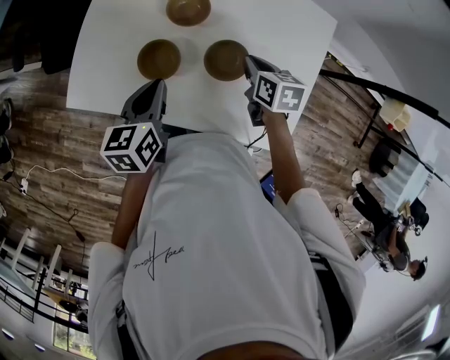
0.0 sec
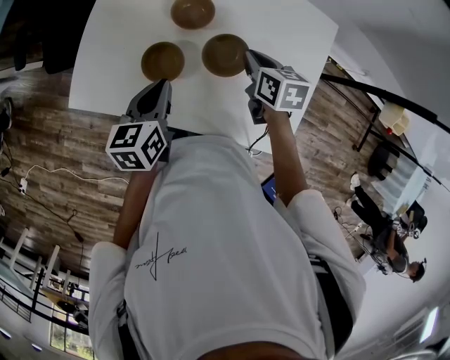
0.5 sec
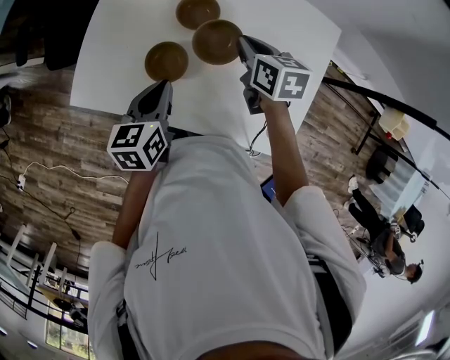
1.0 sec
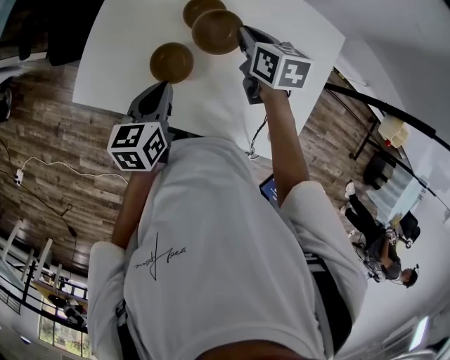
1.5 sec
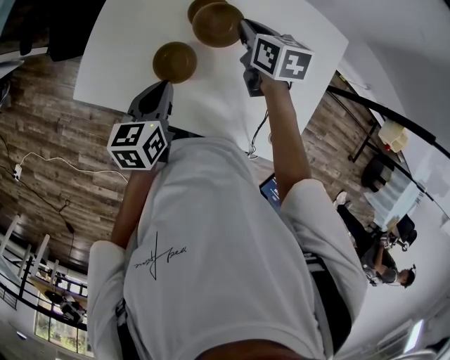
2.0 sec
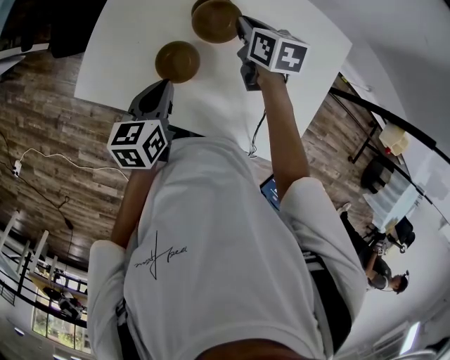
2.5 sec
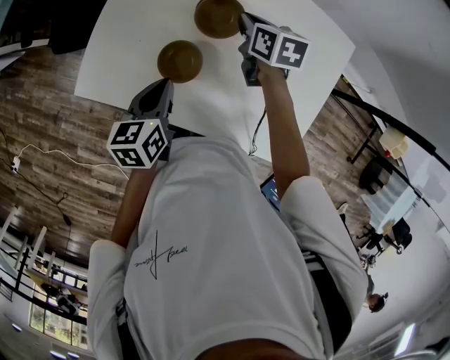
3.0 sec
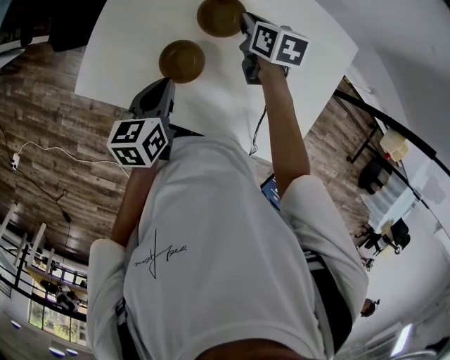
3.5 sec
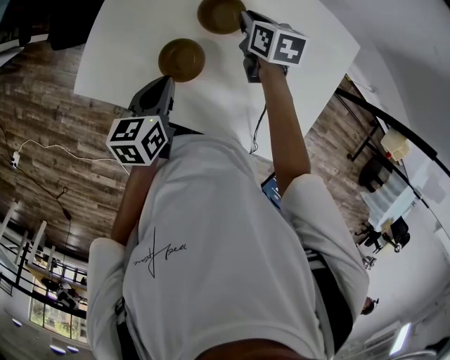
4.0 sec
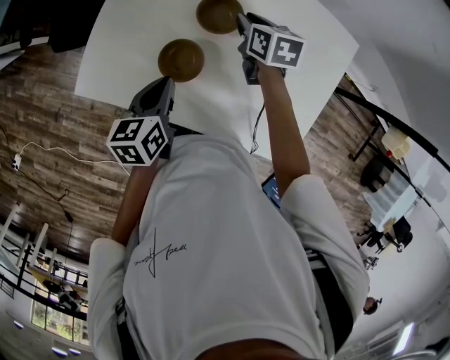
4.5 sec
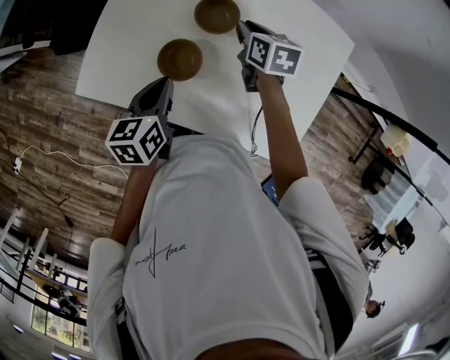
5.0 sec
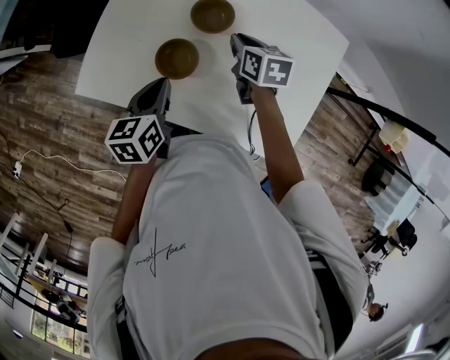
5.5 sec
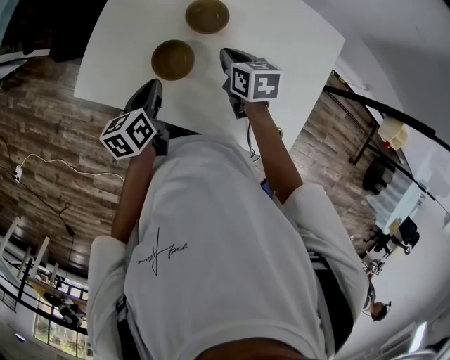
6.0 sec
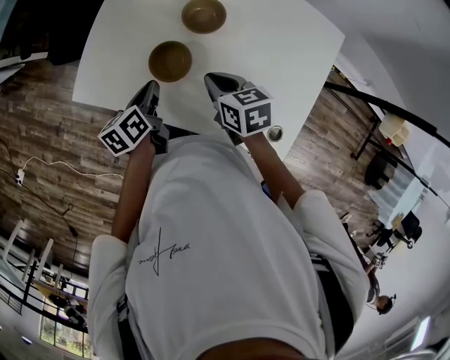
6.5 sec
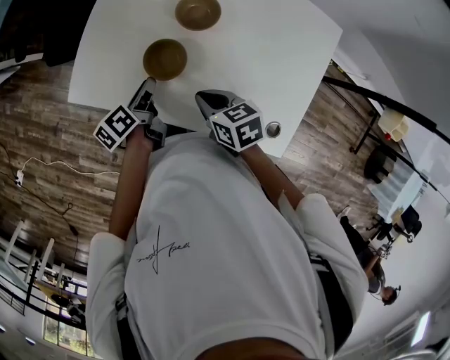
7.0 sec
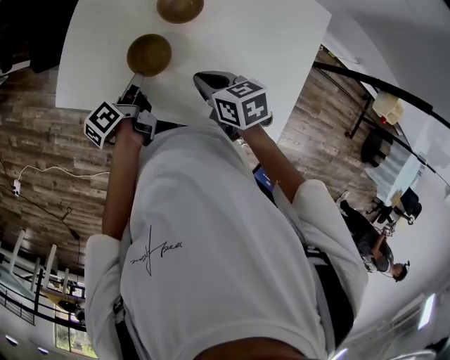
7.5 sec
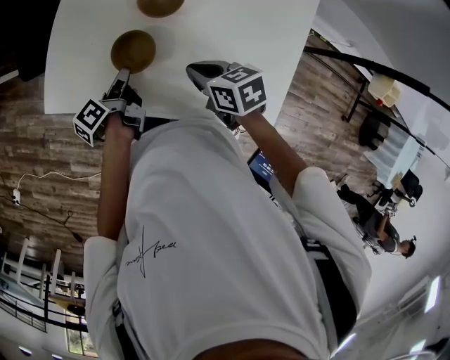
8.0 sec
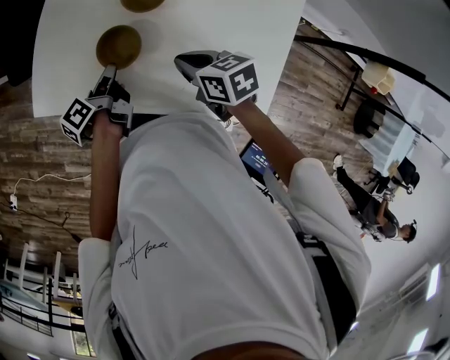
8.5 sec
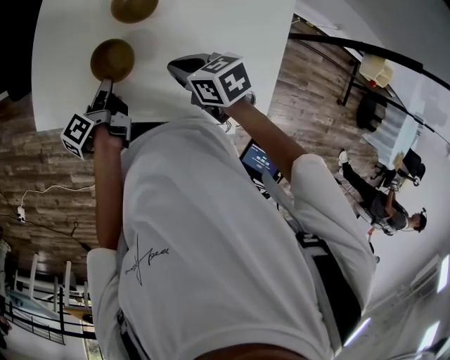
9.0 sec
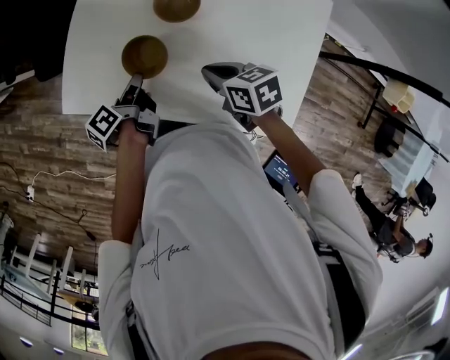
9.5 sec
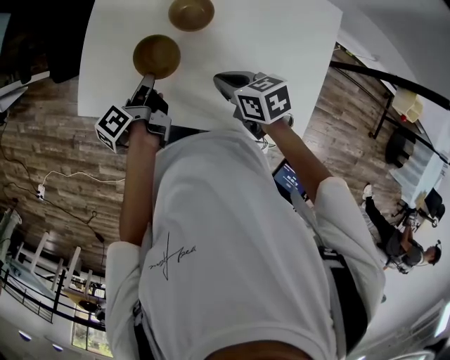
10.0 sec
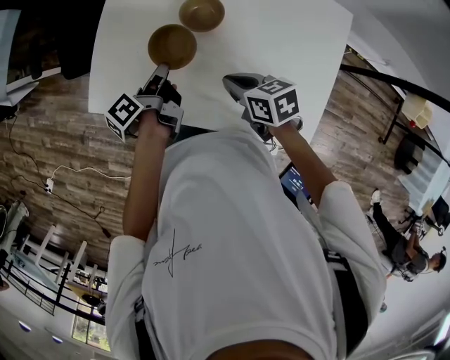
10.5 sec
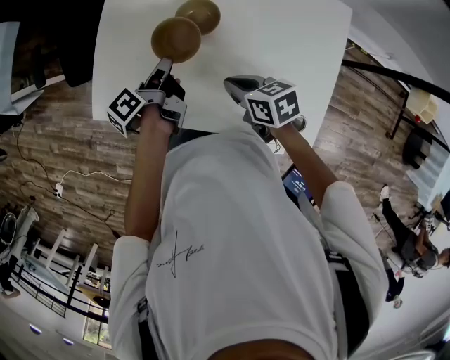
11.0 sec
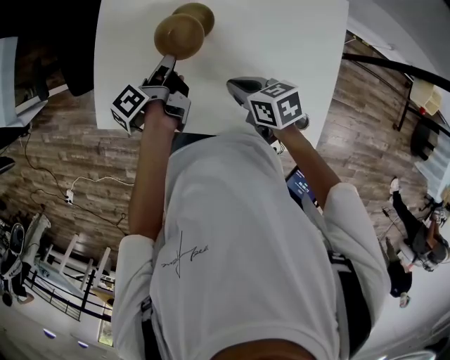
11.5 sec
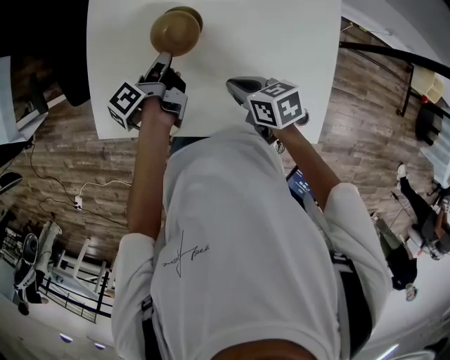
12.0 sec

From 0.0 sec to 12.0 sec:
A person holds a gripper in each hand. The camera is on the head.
From 0.0 sec to 2.0 sec: The right gripper is displaced forward, to the left and upward by about 15 cm.
From 2.0 sec to 4.0 sec: The right gripper goes approximately 5 cm downward.
From 4.0 sec to 6.0 sec: The right gripper heads backward, covering roughly 10 cm.
From 6.0 sec to 8.0 sec: The left gripper heads downward, covering some 5 cm, and rotates around the line of its fingers by roughly 40 degrees, counterclockwise from behind, while the right gripper moves backward, approximately 10 cm.
From 8.0 sec to 10.0 sec: There are only small adjustments of the grippers.
From 10.0 sec to 12.0 sec: The left gripper shifts some 10 cm to the right and forward.

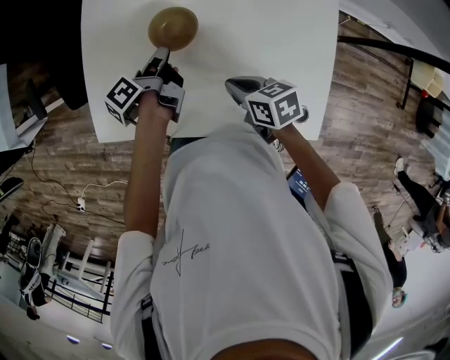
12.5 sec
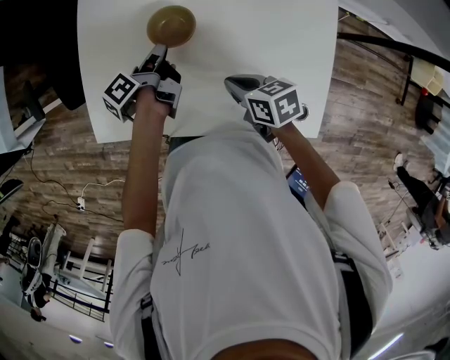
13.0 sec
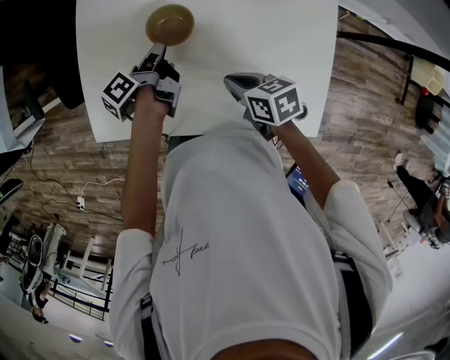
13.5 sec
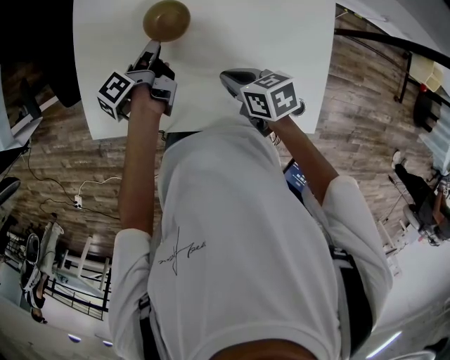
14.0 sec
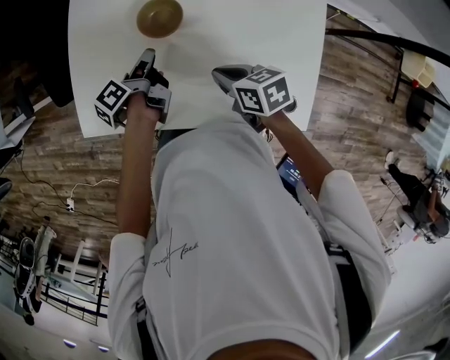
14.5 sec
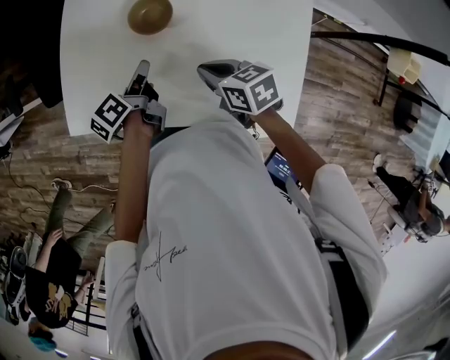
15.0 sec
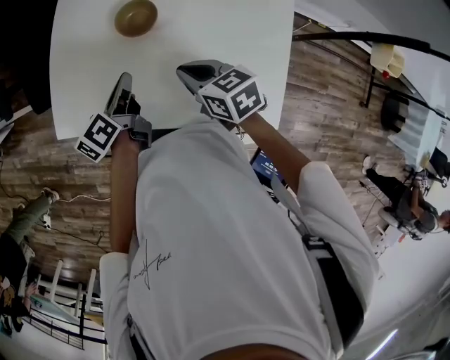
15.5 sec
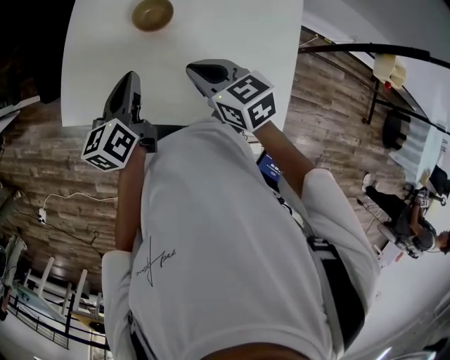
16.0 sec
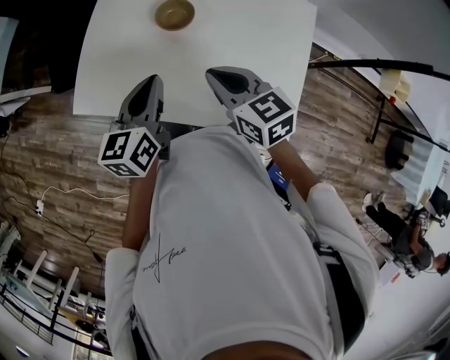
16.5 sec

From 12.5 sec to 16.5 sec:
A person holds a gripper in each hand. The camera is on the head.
From 12.5 sec to 14.5 sec: The grippers make only small movements.
From 14.5 sec to 16.5 sec: The right gripper heads upward, covering roughly 15 cm, and swivels approximately 30 degrees; the left gripper travels upward and backward by about 20 cm, and rotates around the line of its fingers by about 60 degrees, clockwise from behind.

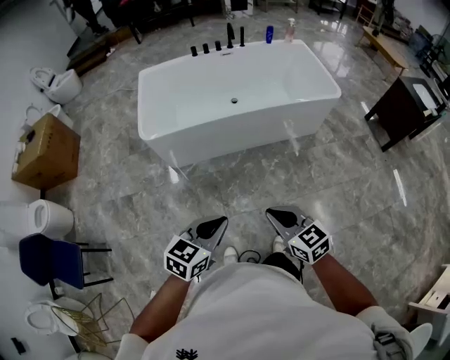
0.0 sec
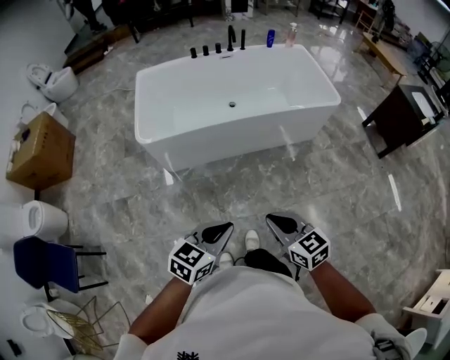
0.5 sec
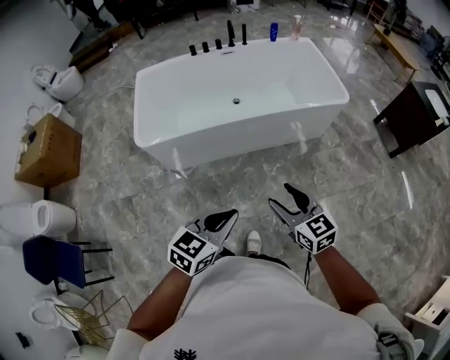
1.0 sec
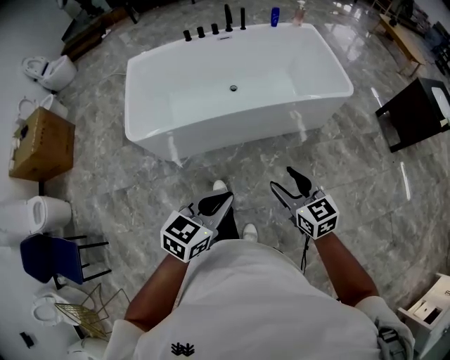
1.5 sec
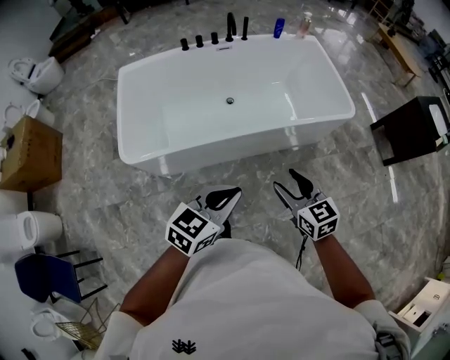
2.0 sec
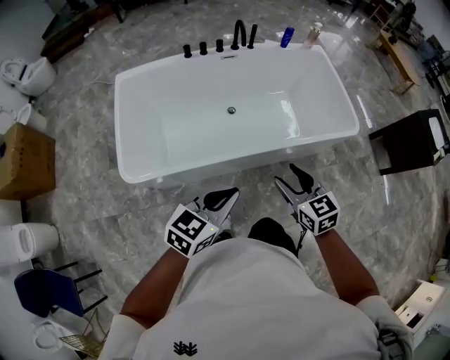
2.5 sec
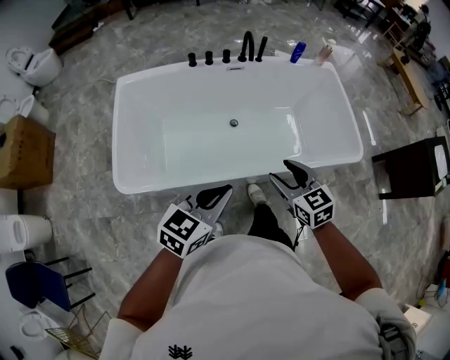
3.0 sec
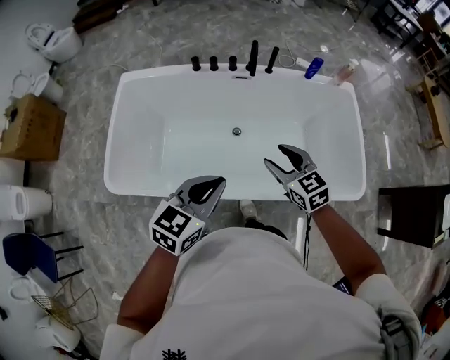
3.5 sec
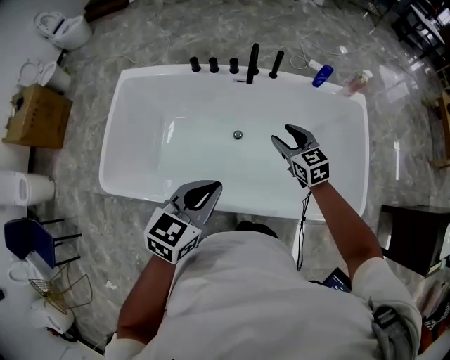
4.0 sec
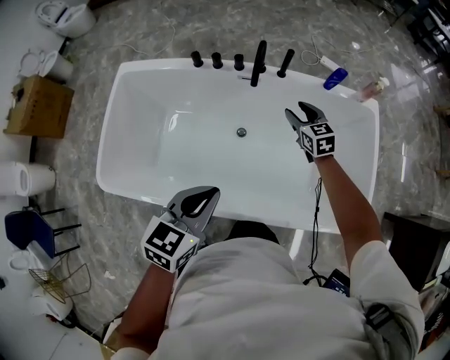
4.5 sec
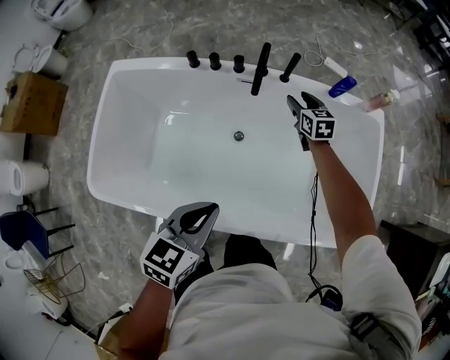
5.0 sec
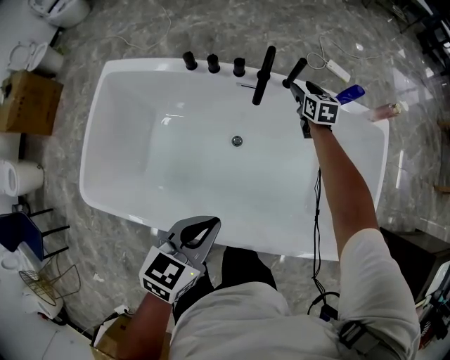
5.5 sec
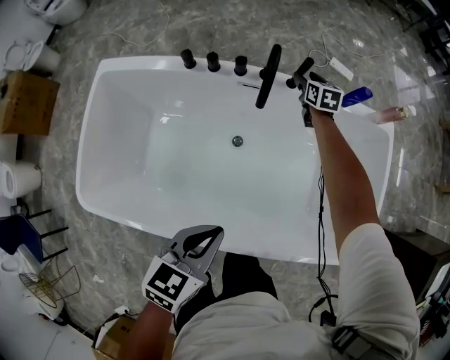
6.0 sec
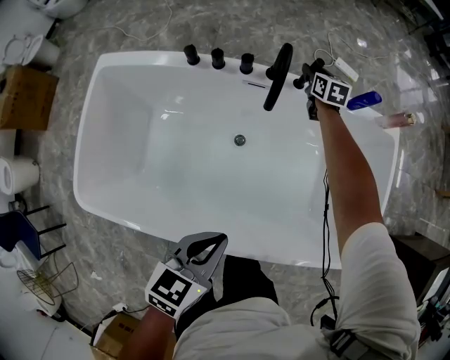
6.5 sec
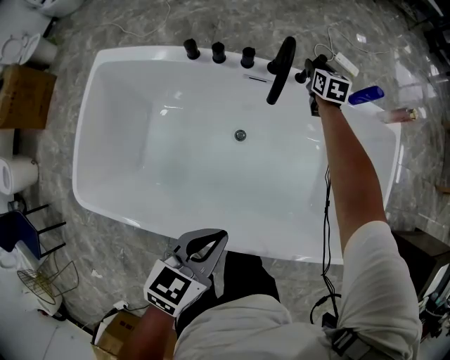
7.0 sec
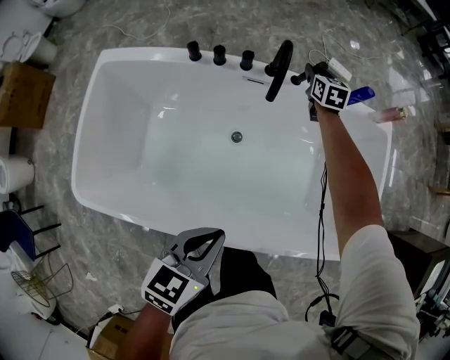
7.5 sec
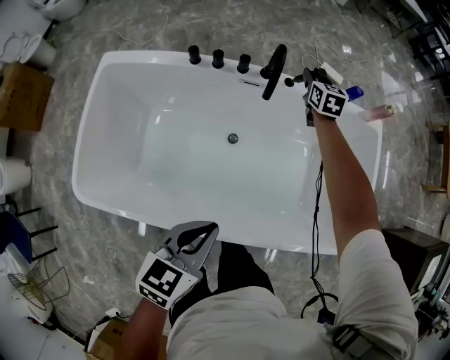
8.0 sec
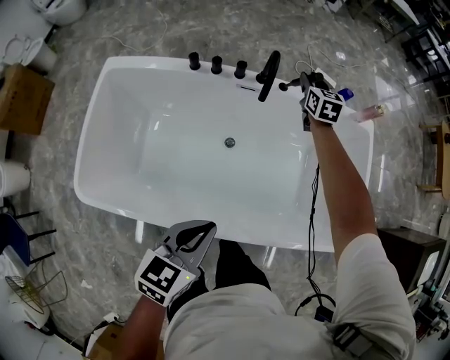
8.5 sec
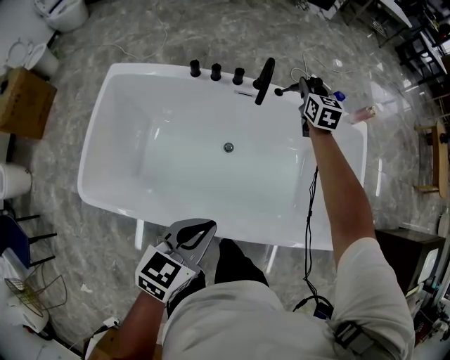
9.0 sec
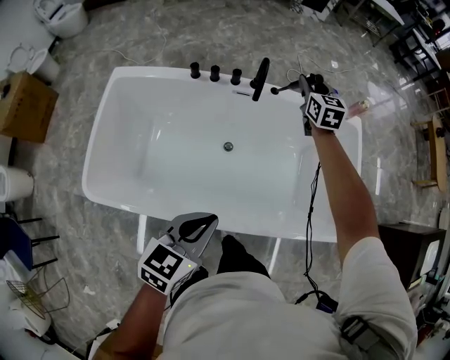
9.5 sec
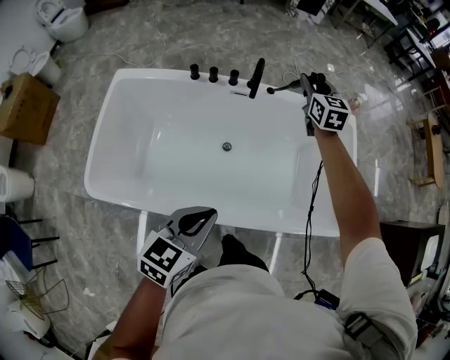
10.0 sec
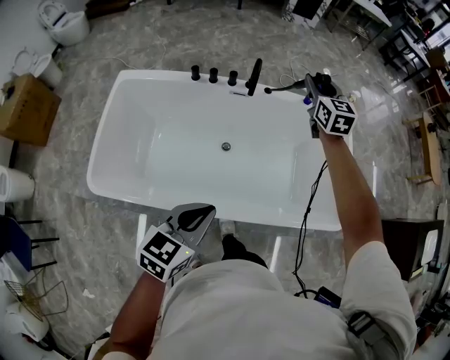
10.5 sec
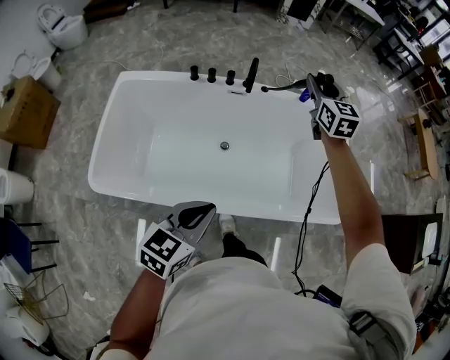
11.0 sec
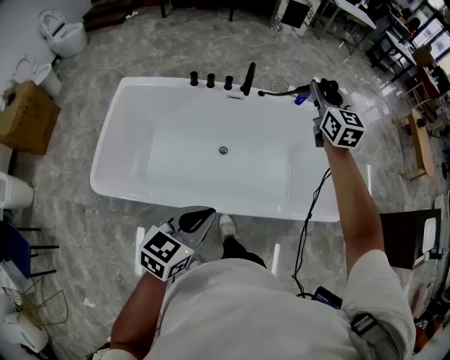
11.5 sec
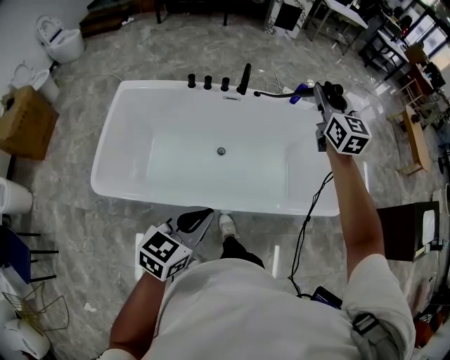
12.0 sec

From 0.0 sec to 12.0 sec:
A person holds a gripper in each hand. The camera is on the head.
From 0.0 sec to 2.0 sec: The two grippers go roughly 35 cm forward. The right gripper opens its fingers.
From 2.0 sec to 4.0 sec: Both grippers are carried forward, about 50 cm. The left gripper changes its angle by roughly 30 degrees; the right gripper turns by roughly 20 degrees.
From 4.0 sec to 6.0 sec: The left gripper shifts about 15 cm downward and forward, while the right gripper goes approximately 40 cm forward and downward, and swivels about 20 degrees.
From 6.0 sec to 8.0 sec: The left gripper moves roughly 5 cm, while the right gripper travels upward by about 10 cm, and closes up.
From 8.0 sec to 10.0 sec: The left gripper is displaced backward and upward by roughly 10 cm, while the right gripper travels upward and backward by about 25 cm.
From 10.0 sec to 12.0 sec: The right gripper travels backward and upward by about 25 cm. The left gripper travels backward by roughly 15 cm.
